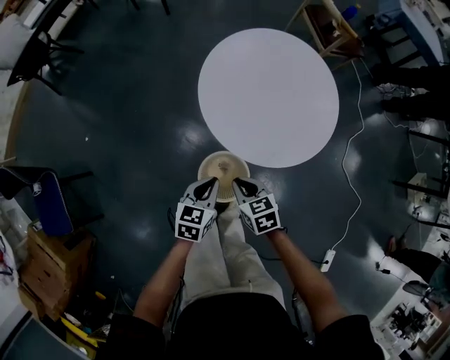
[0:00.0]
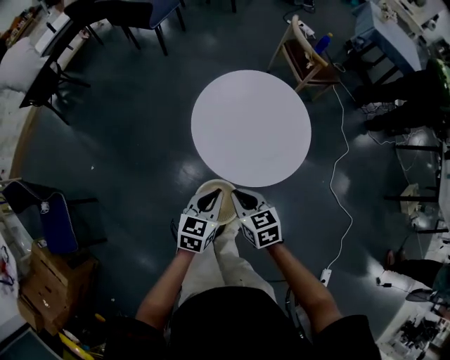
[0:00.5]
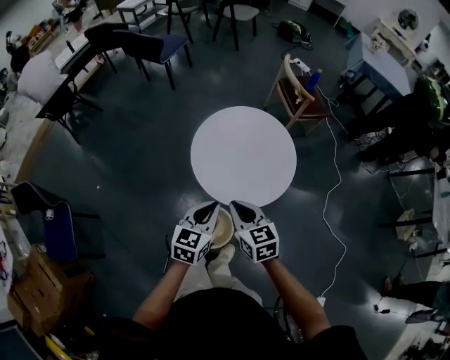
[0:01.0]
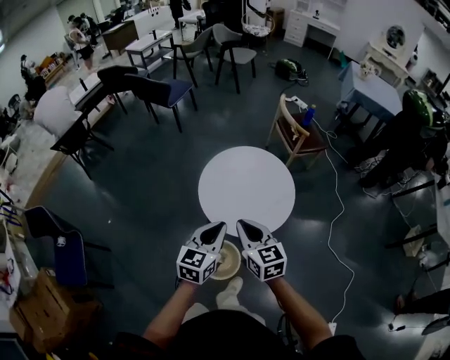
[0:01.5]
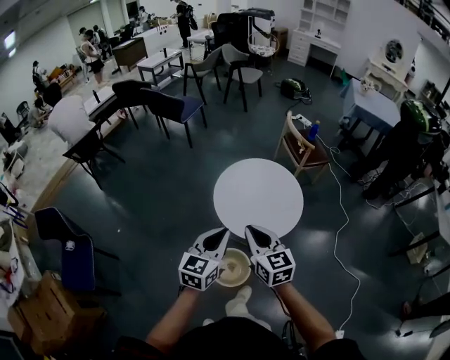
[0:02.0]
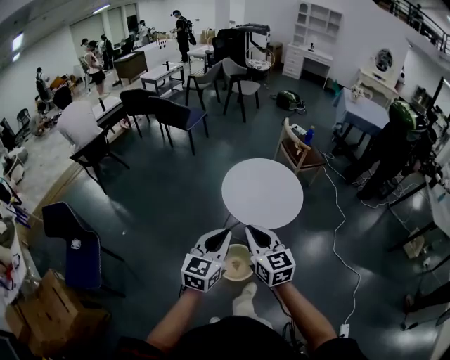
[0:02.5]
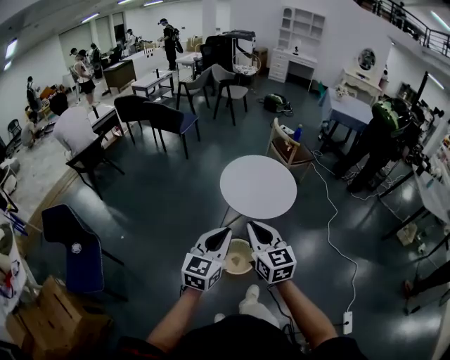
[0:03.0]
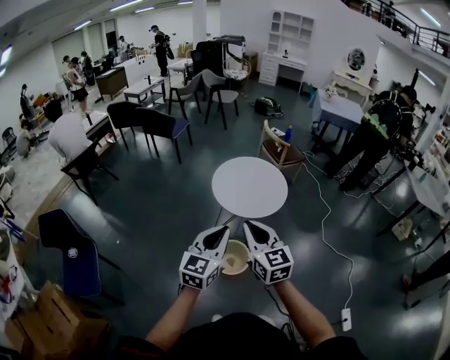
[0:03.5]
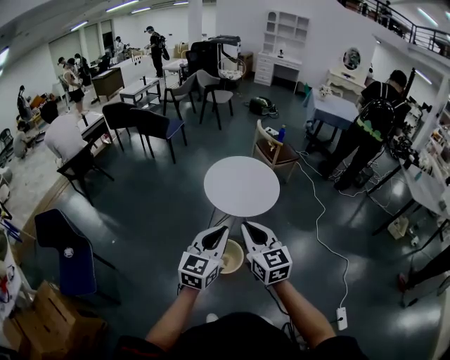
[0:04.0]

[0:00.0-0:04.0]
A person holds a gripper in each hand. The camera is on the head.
0.0 to 2.0 s: The grippers both shift upward by about 40 cm. The right gripper angles its fingers upward, by about 30 degrees; the left gripper rotates some 30 degrees.
2.0 to 4.0 s: Both grippers travel together backward, roughly 25 cm.

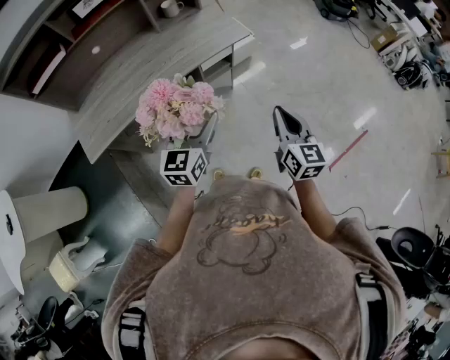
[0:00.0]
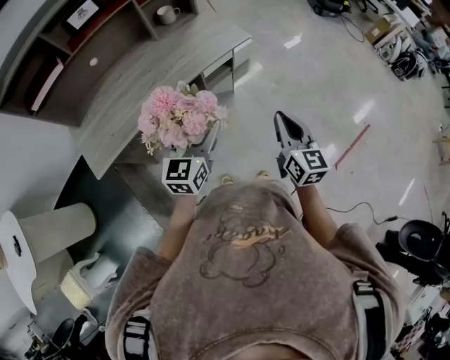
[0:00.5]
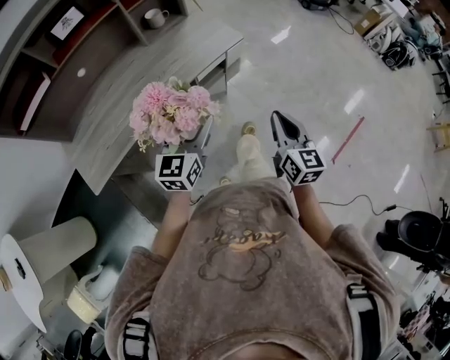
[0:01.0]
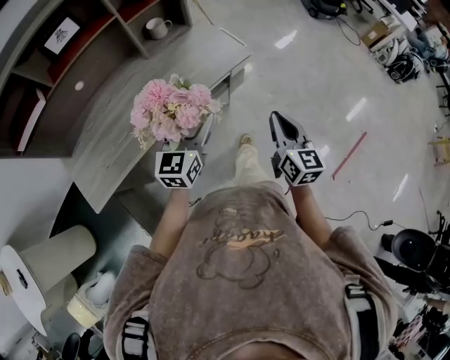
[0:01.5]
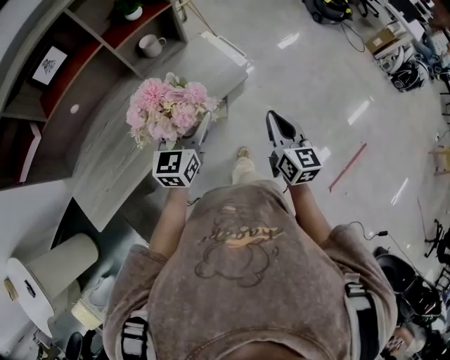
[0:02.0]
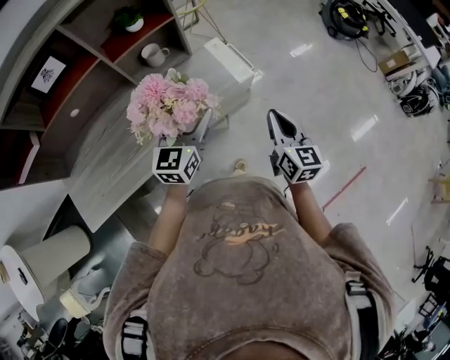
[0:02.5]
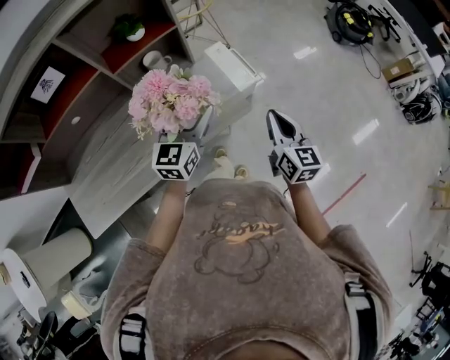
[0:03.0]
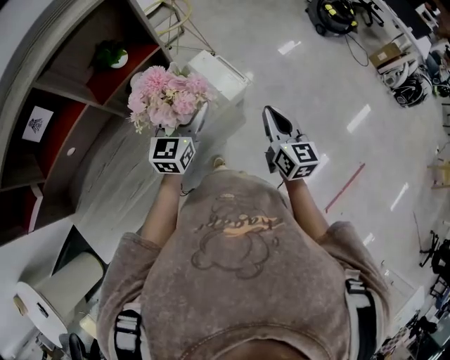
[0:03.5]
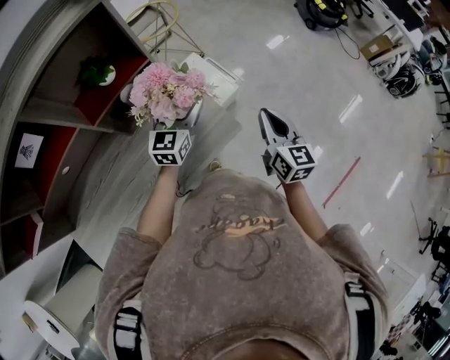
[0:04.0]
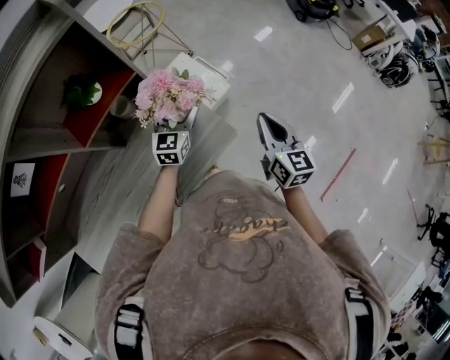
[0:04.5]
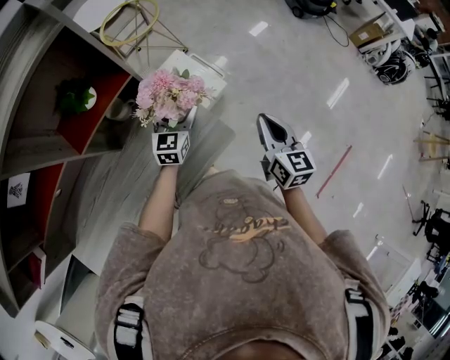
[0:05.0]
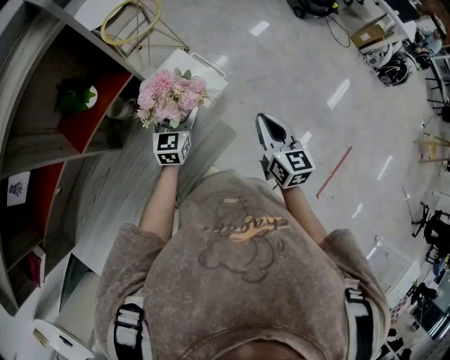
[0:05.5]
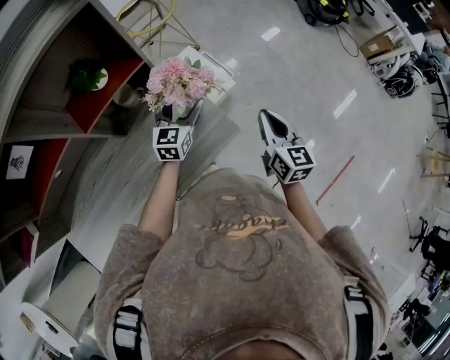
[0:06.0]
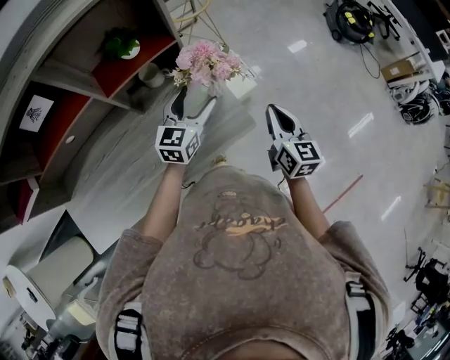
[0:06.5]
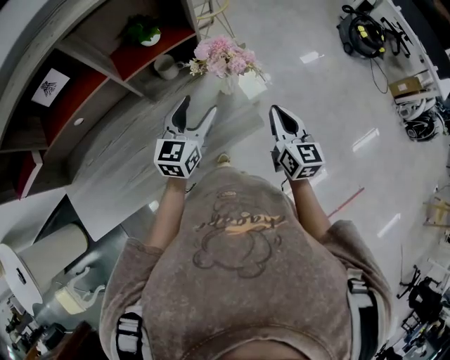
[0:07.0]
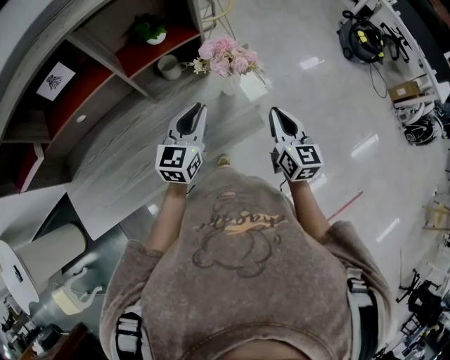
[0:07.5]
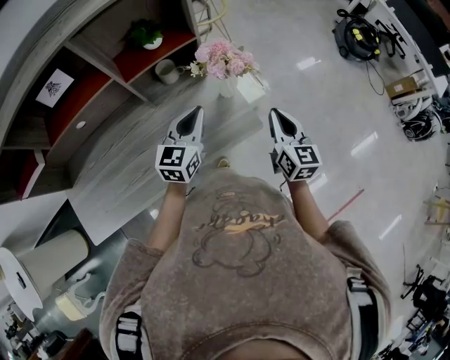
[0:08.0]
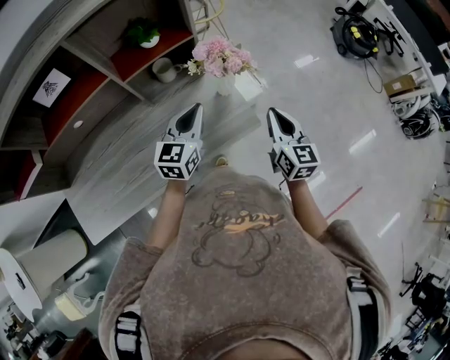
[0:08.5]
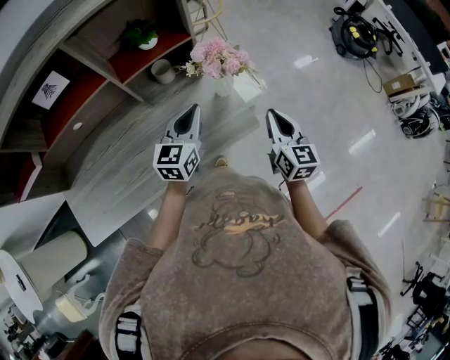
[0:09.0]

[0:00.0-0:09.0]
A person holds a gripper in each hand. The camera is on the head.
0.0 to 2.0 s: Both grippers travel together forward, about 30 cm.
2.0 to 4.5 s: The two grippers go approximately 35 cm forward.
4.5 to 7.0 s: The left gripper travels backward and upward by approximately 15 cm. The right gripper travels to the left by approximately 5 cm.
7.0 to 9.0 s: The left gripper closes up.

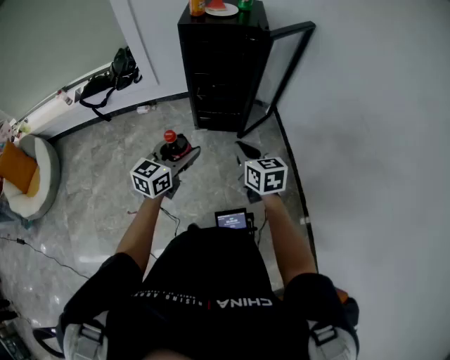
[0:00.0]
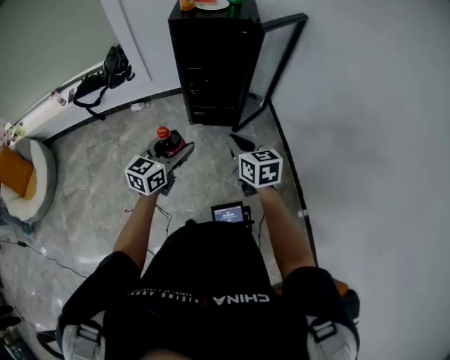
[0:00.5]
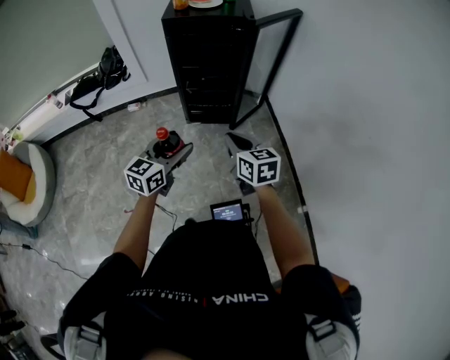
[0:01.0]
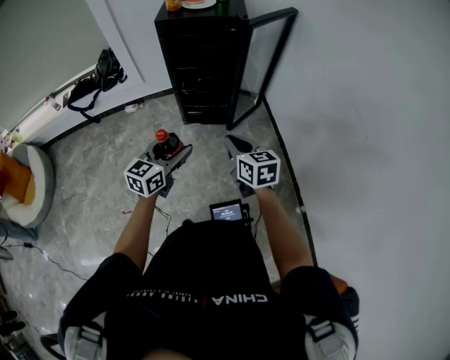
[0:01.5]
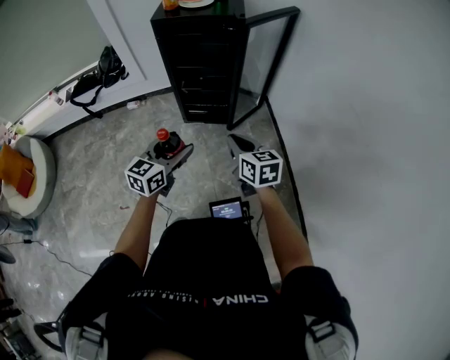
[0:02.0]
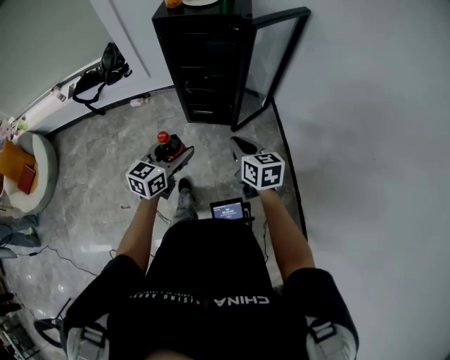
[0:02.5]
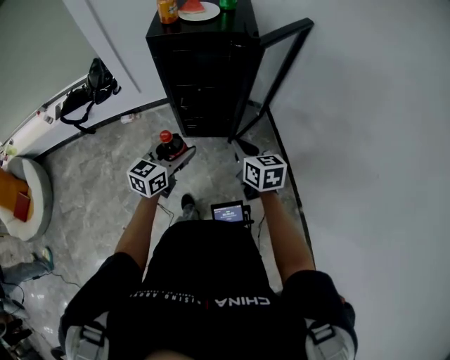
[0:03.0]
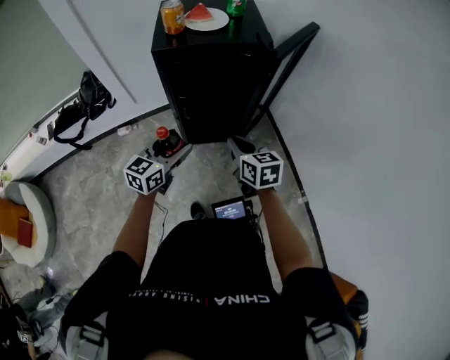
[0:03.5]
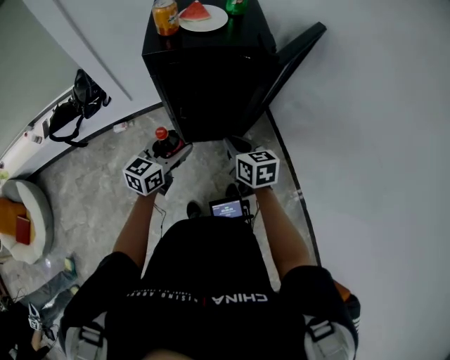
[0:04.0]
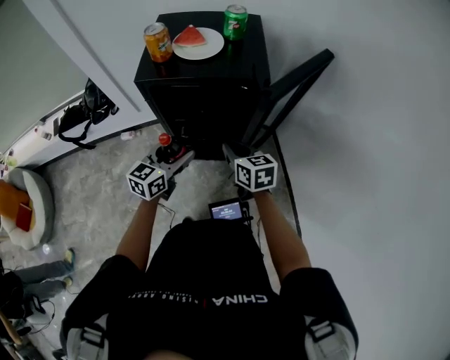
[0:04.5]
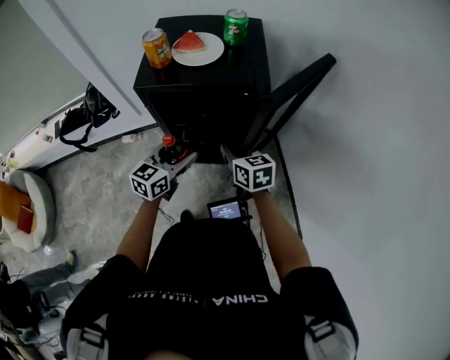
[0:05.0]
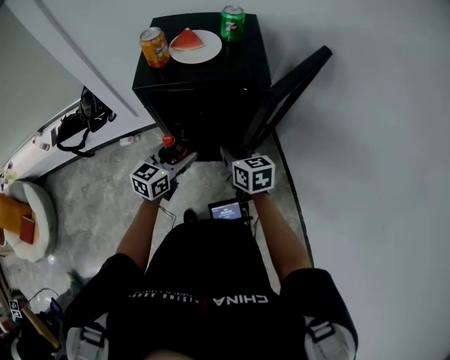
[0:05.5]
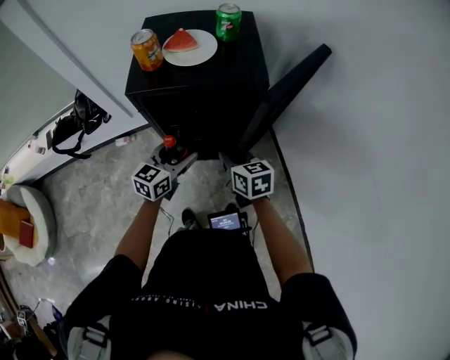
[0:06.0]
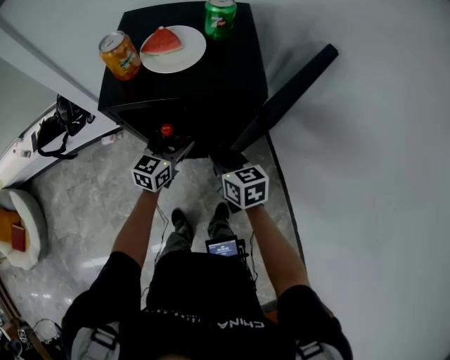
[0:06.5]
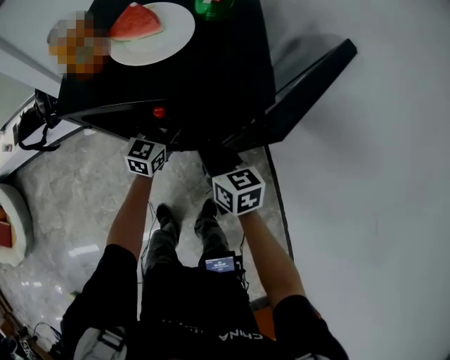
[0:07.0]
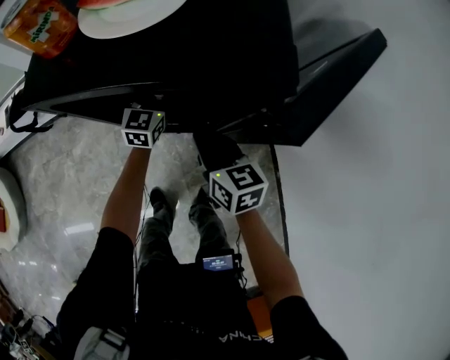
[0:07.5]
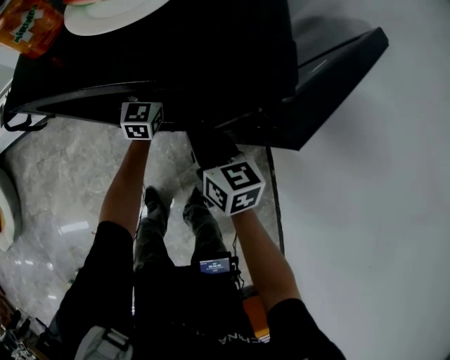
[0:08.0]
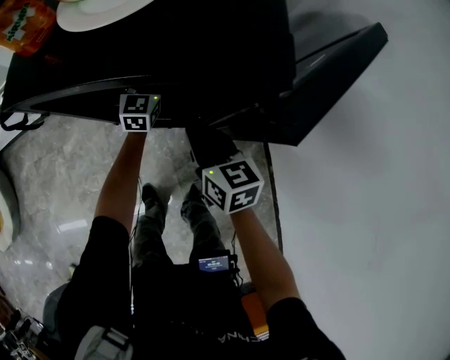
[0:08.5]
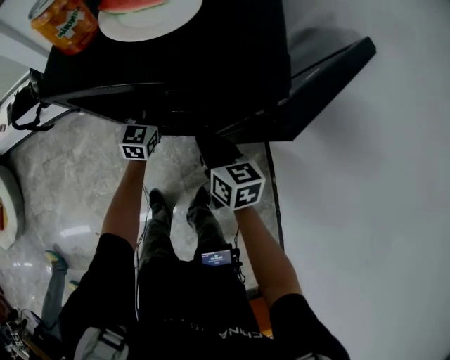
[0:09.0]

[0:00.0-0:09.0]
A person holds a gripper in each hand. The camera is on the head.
0.0 to 2.0 s: The two grippers go roughly 10 cm to the right.
2.0 to 4.5 s: The two grippers go about 35 cm forward.
4.5 to 7.0 s: The right gripper moves forward and downward, roughly 10 cm; the left gripper moves forward and downward, approximately 25 cm.
7.0 to 9.0 s: The left gripper goes forward and returns, about 10 cm each way.

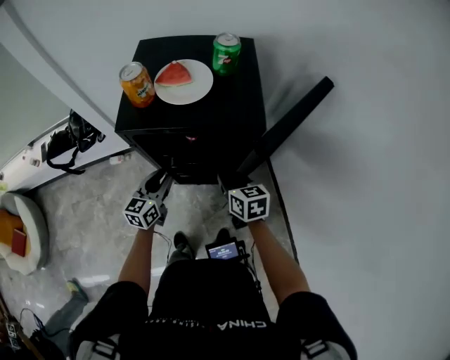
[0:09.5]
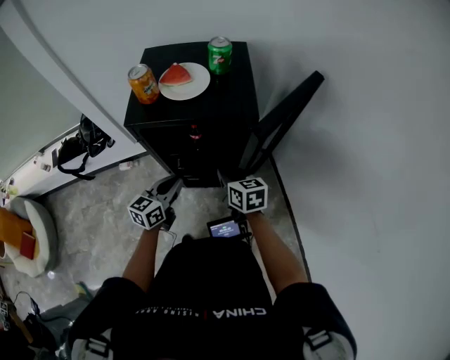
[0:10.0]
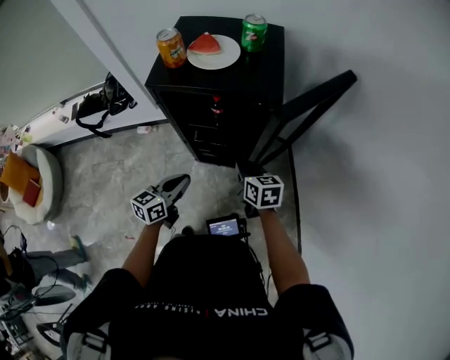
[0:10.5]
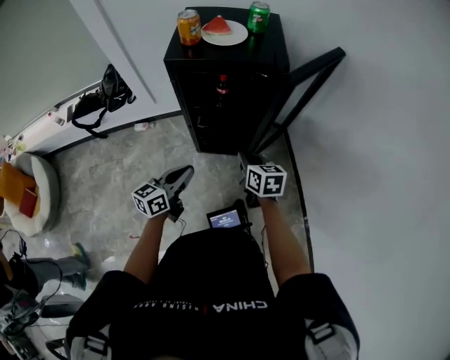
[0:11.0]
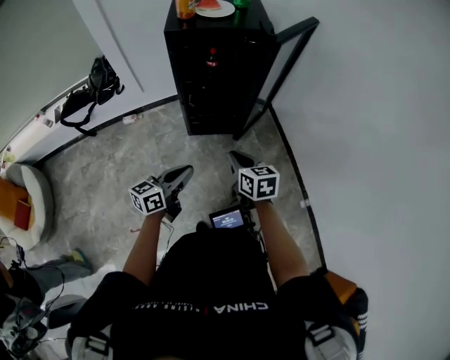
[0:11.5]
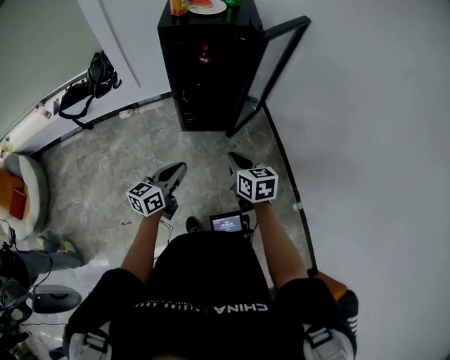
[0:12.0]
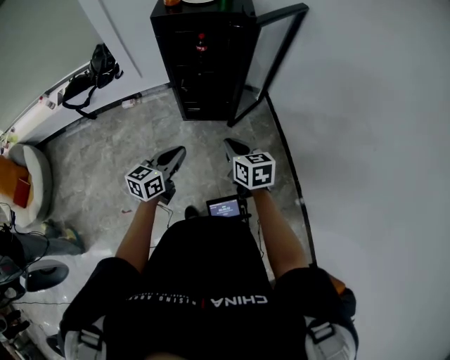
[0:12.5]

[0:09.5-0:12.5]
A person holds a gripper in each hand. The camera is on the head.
9.5 to 11.0 s: The two grippers go some 20 cm backward.
11.0 to 12.5 s: The two grippers go approximately 20 cm backward.

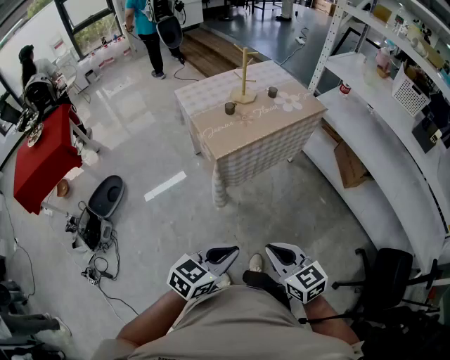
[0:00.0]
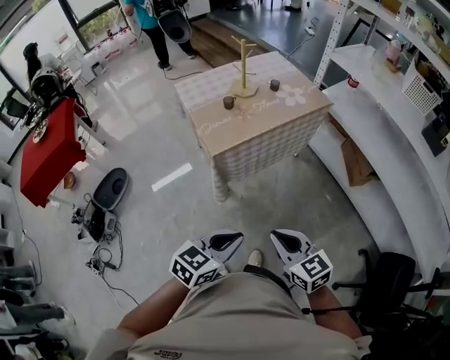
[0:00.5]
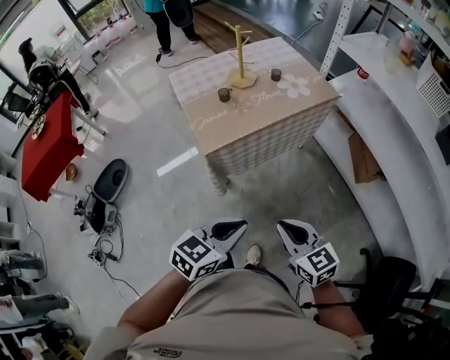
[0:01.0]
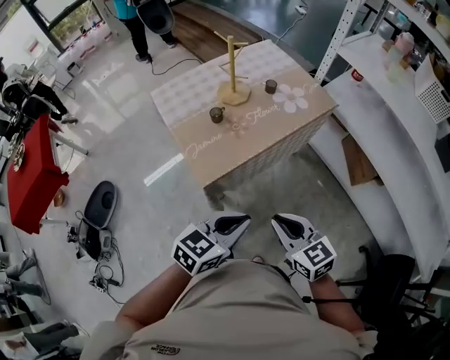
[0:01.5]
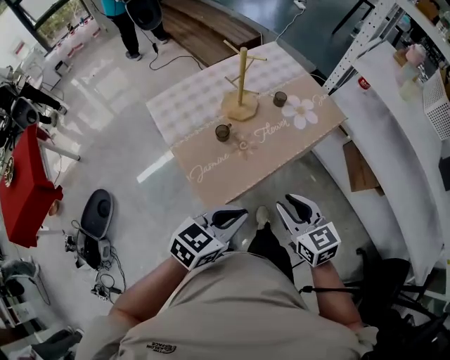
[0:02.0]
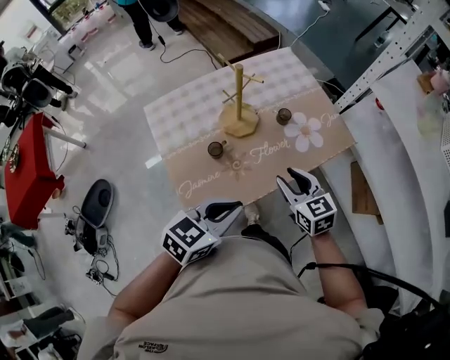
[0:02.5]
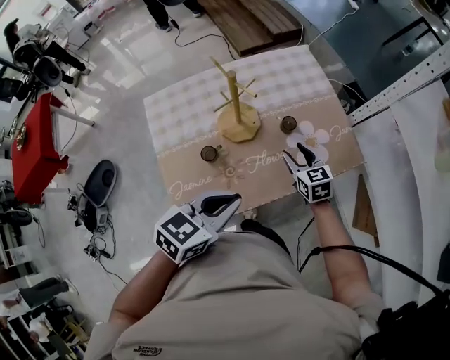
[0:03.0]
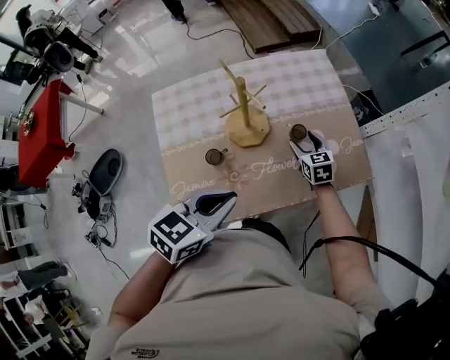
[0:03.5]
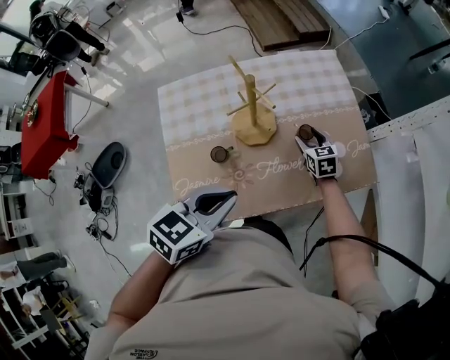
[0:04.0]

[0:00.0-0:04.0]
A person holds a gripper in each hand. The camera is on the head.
0.0 to 2.0 s: Both grippers are carried forward, some 40 cm. The right gripper opens up.
2.0 to 4.0 s: The right gripper shifts about 50 cm forward and downward, and opens; the left gripper moves forward, some 25 cm, and rotates about 30 degrees.
